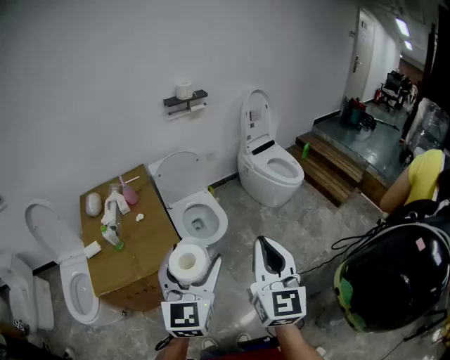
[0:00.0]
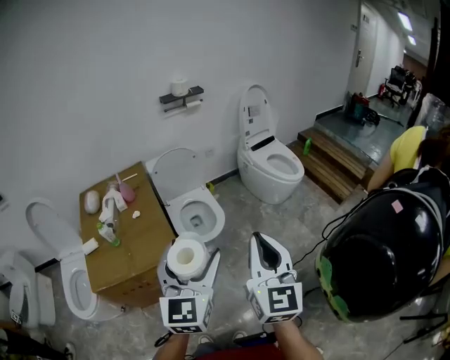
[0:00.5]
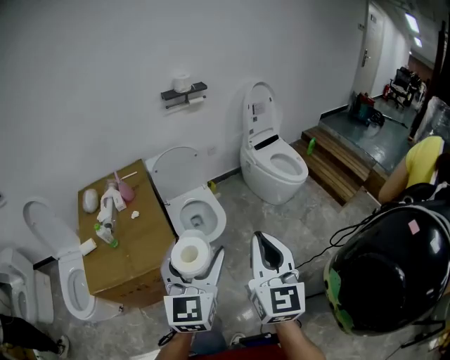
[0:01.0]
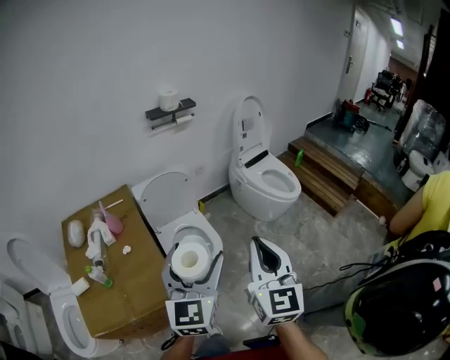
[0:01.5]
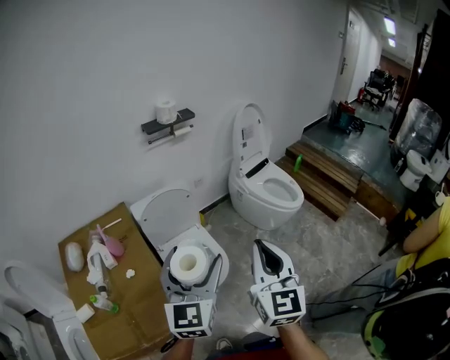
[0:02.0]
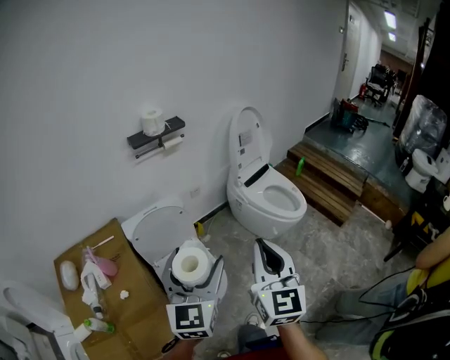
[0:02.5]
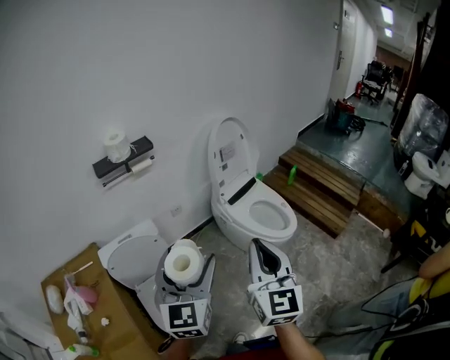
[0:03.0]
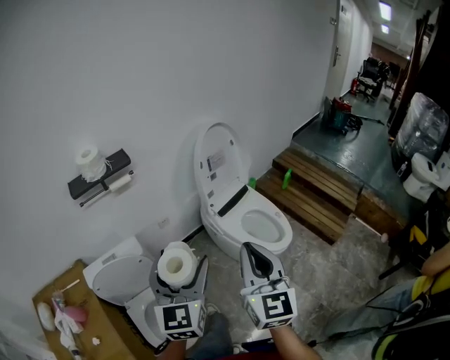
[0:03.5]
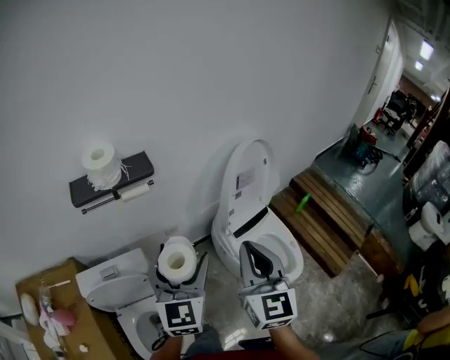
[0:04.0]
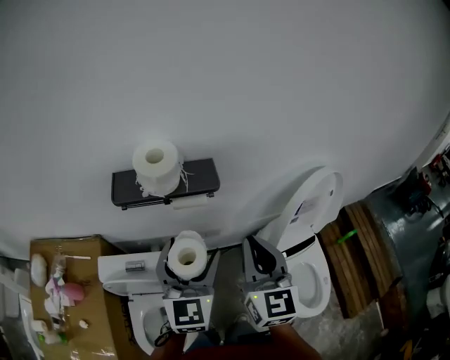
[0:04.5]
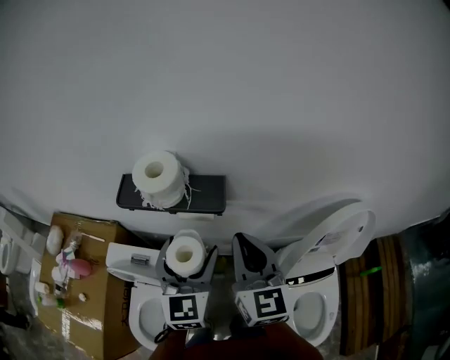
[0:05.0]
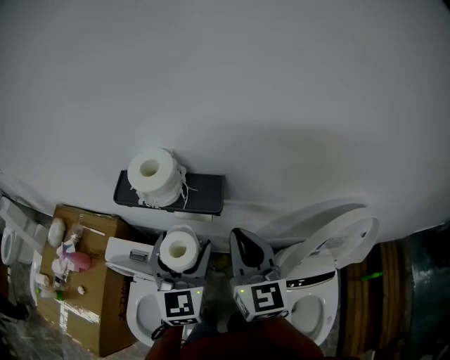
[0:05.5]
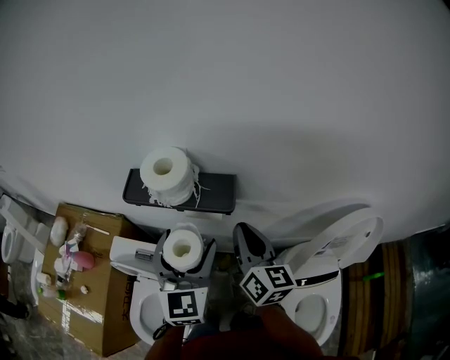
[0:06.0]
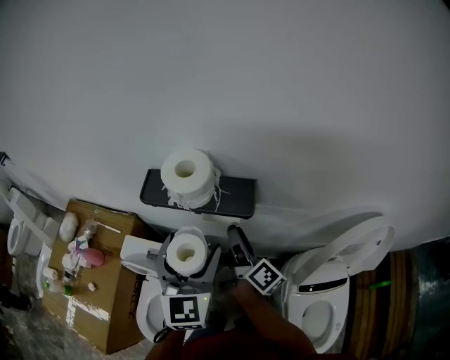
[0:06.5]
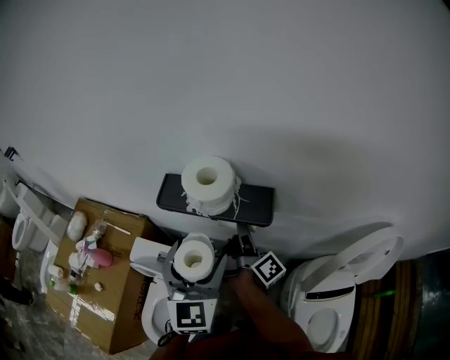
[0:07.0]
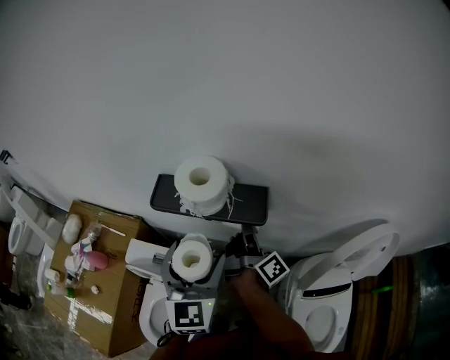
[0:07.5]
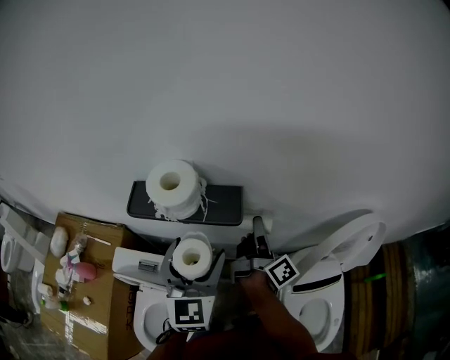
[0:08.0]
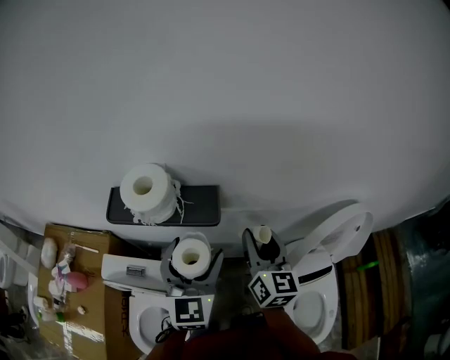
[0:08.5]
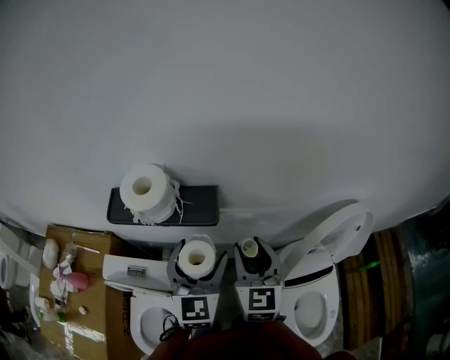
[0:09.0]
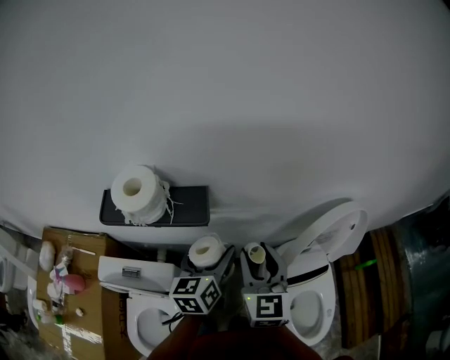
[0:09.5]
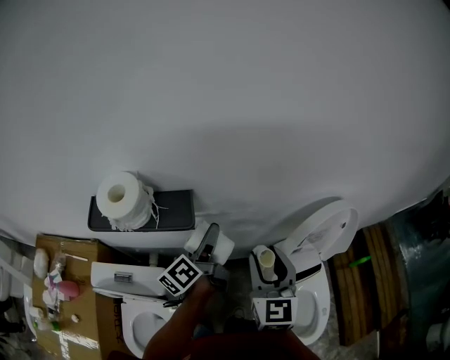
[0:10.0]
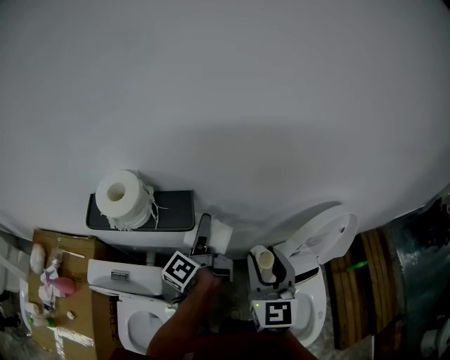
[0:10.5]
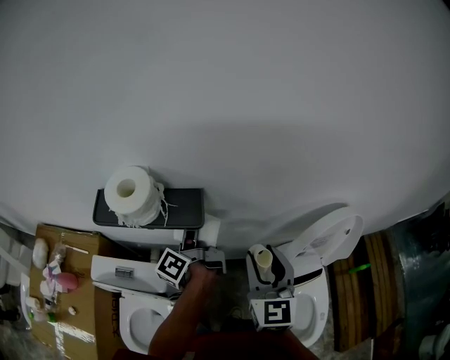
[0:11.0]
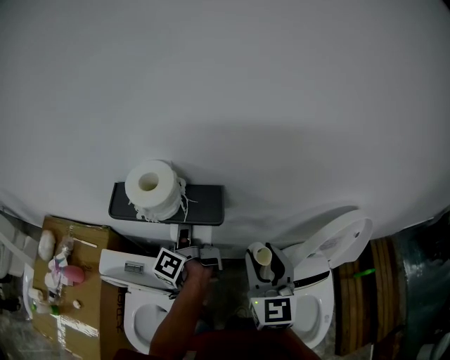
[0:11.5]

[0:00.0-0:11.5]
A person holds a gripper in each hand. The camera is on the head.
0:00.0 to 0:02.0: The grippers both shift forward by roughly 30 cm.
0:02.0 to 0:04.0: The pair of grippers is taken forward, some 60 cm.
0:04.0 to 0:06.0: The left gripper ends up roughly 20 cm from where it was, and changes its angle by roughly 40 degrees, while the right gripper ends up some 35 cm from where it was, and changes its angle by about 50 degrees.
0:06.0 to 0:07.5: The left gripper is displaced to the left by roughly 5 cm. The right gripper shifts about 10 cm forward and downward, twists about 50 degrees clockwise, seen from behind, and opens its fingers.
0:07.5 to 0:09.5: The left gripper heads to the right and downward, covering roughly 20 cm, and rotates approximately 40 degrees. The right gripper shifts roughly 15 cm to the right and backward, and twists approximately 90 degrees counterclockwise, seen from behind.
0:09.5 to 0:11.5: The left gripper goes about 15 cm to the left and forward, and twists some 60 degrees counterclockwise, seen from behind.

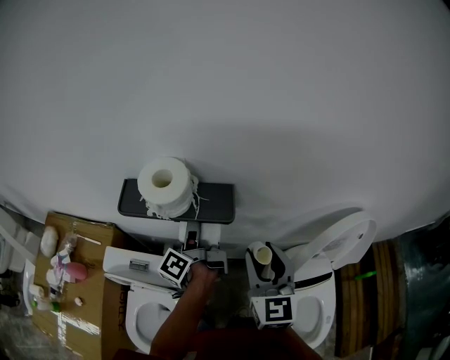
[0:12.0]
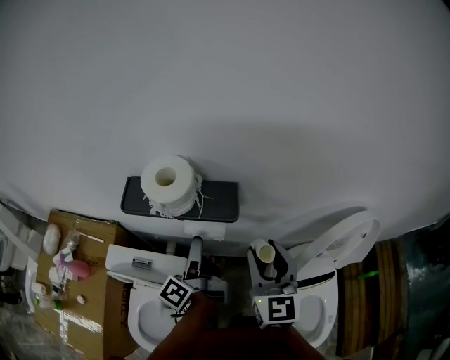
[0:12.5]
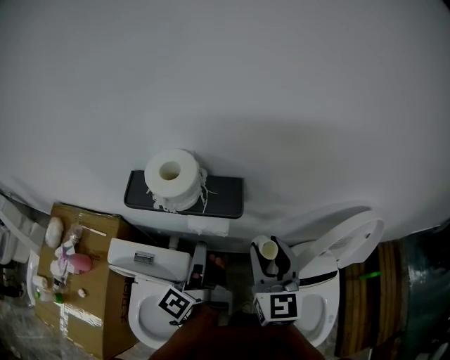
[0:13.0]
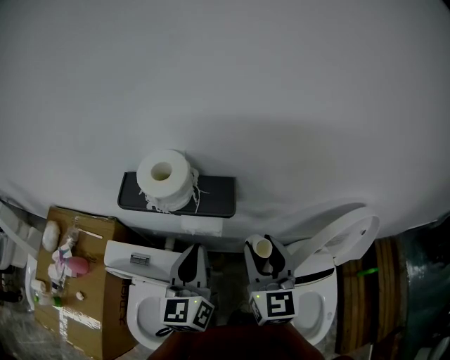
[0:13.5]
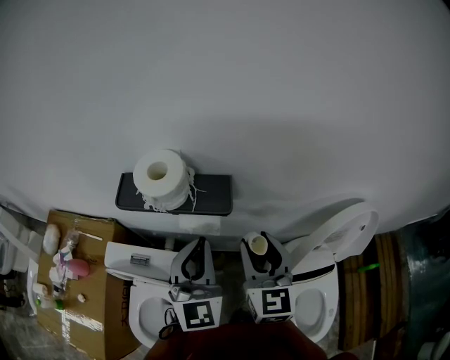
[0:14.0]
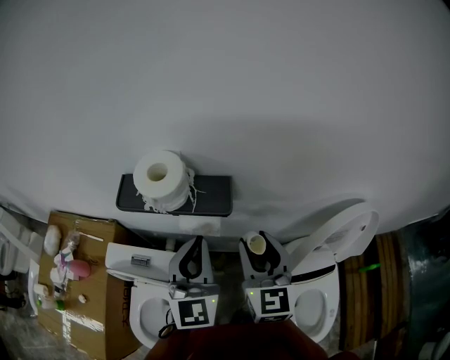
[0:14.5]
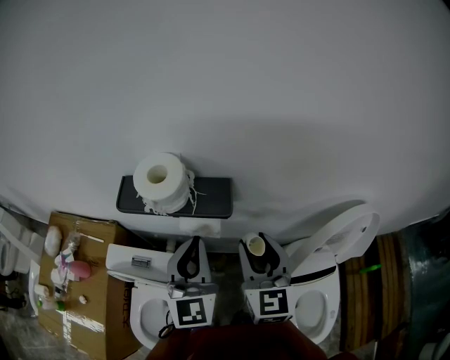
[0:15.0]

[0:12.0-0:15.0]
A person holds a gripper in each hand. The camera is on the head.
0:12.0 to 0:13.5: The left gripper heads backward, covering roughly 10 cm, rotates around the line of its fingers by approximately 70 degrees, clockwise from behind, and closes up.
0:13.5 to 0:15.0: The left gripper turns by some 20 degrees.

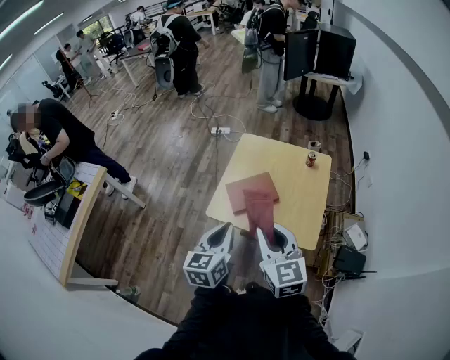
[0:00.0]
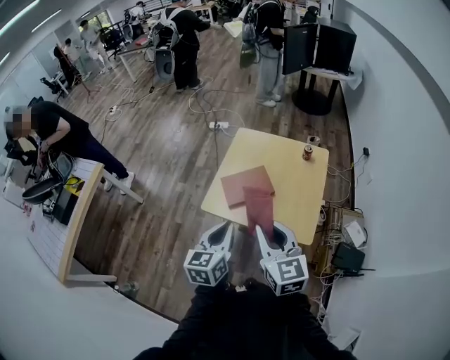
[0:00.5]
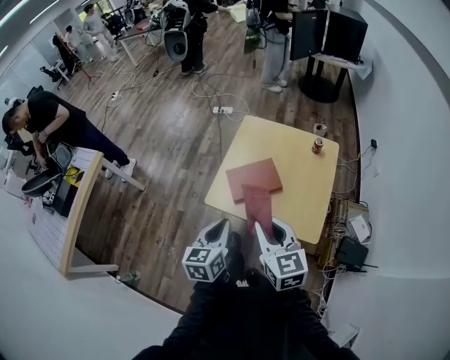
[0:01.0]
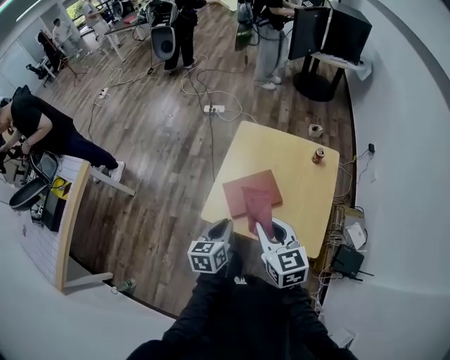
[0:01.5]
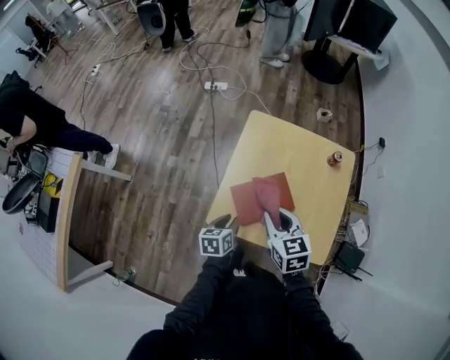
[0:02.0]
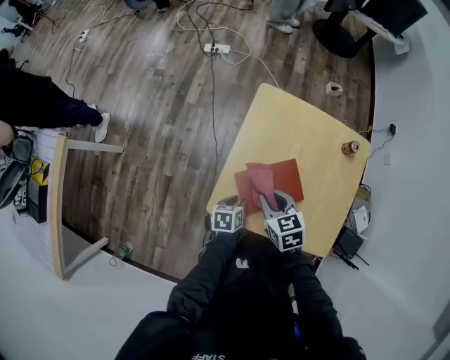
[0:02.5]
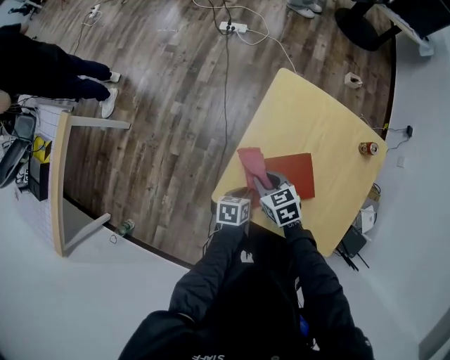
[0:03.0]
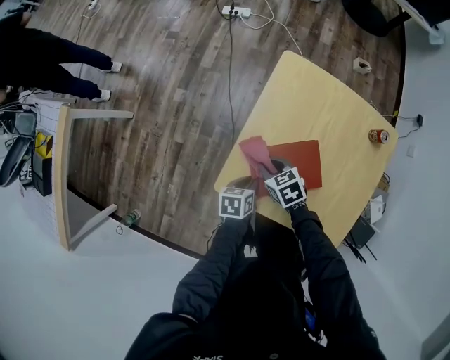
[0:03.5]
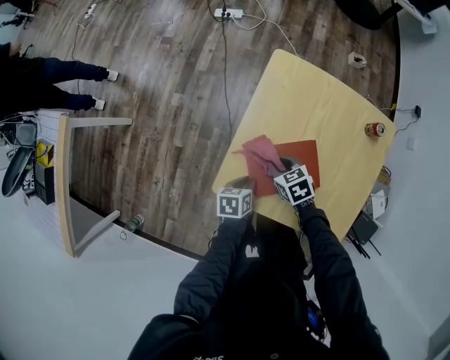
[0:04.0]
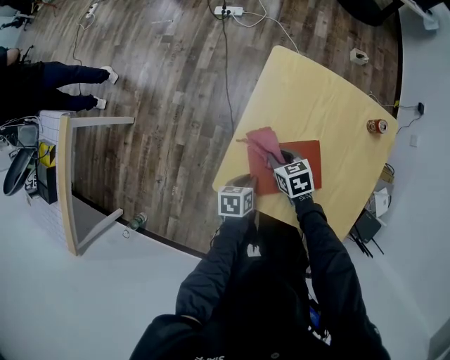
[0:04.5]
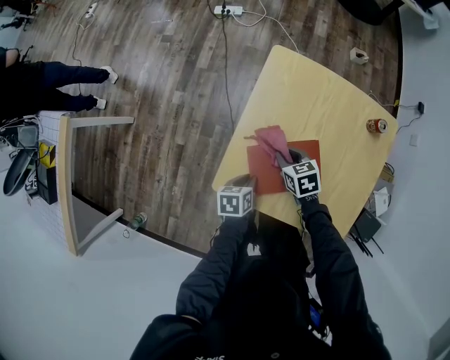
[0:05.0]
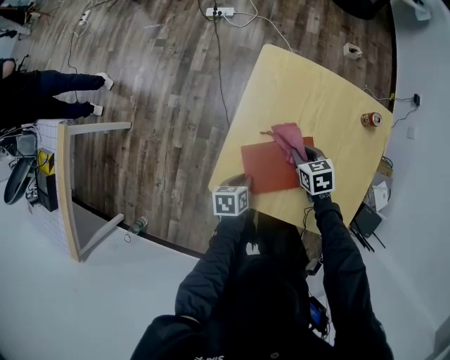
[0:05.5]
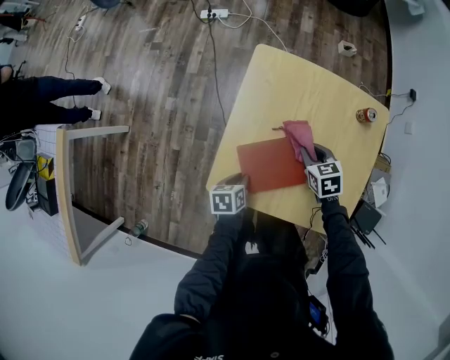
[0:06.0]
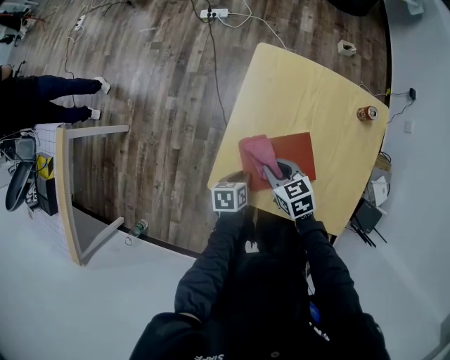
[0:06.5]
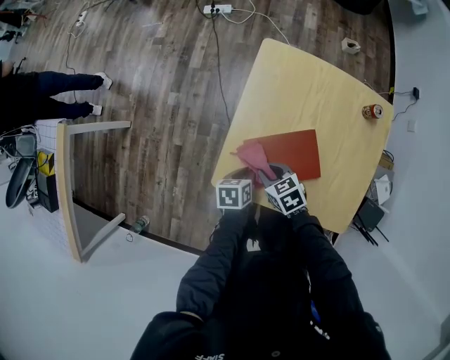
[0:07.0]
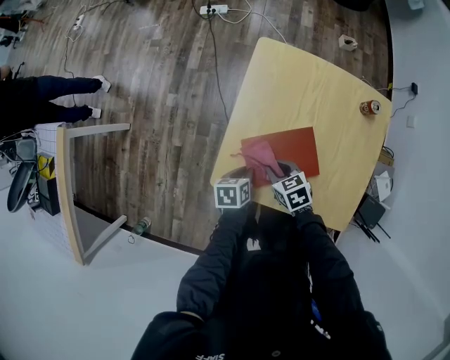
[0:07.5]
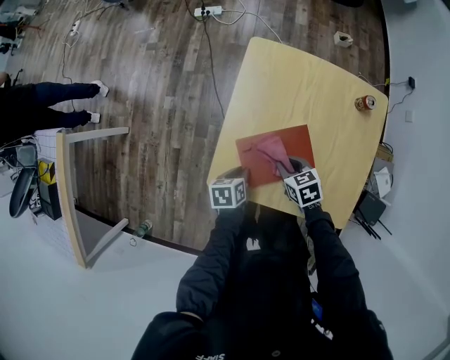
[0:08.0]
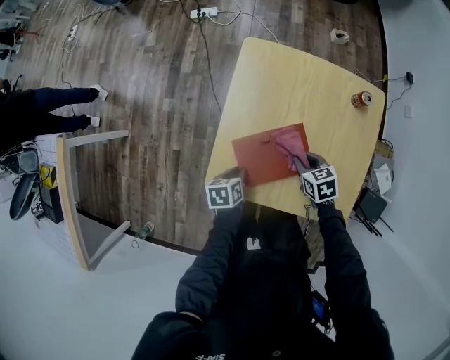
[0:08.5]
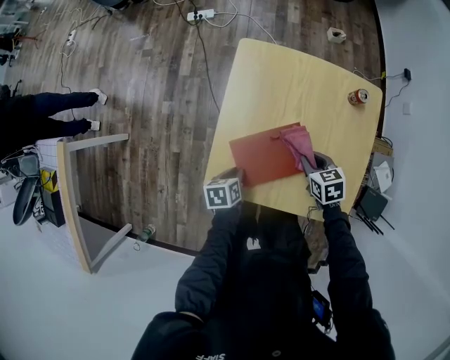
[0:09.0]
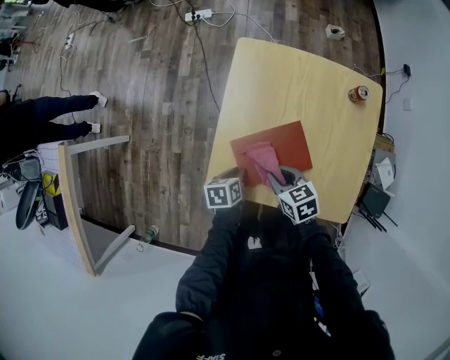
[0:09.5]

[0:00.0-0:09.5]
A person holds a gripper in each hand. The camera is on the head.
0:00.0 to 0:02.0: The right gripper moves forward and downward, roughly 30 cm, and turns by some 20 degrees. Meanwhile the left gripper travels downward and forward by roughly 35 cm, and swivels roughly 30 degrees.
0:02.0 to 0:04.0: The left gripper heads downward, covering approximately 15 cm; the right gripper moves downward, roughly 25 cm, and changes its angle by some 30 degrees.
0:04.0 to 0:05.5: The right gripper travels to the right by roughly 10 cm.
0:05.5 to 0:07.5: The right gripper travels backward and to the left by approximately 15 cm.
0:07.5 to 0:09.5: The right gripper goes to the right and returns, about 15 cm each way.

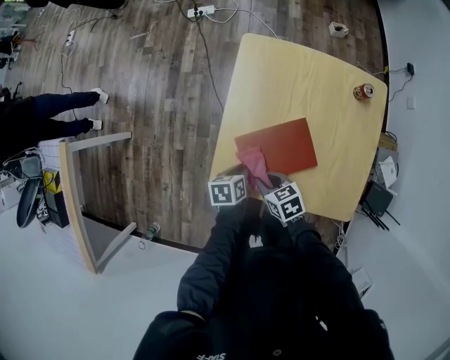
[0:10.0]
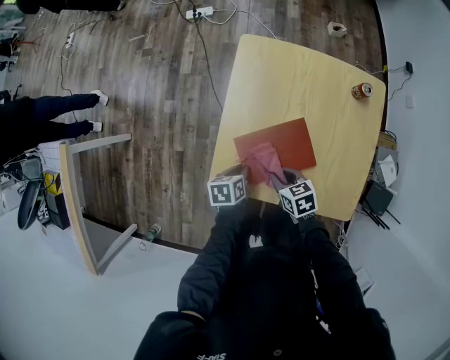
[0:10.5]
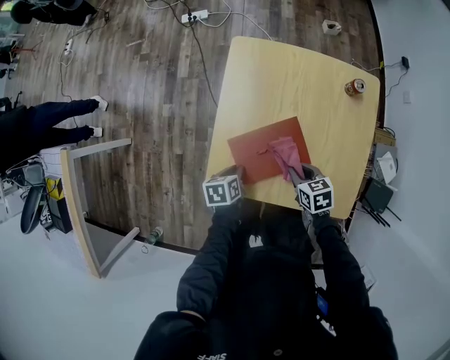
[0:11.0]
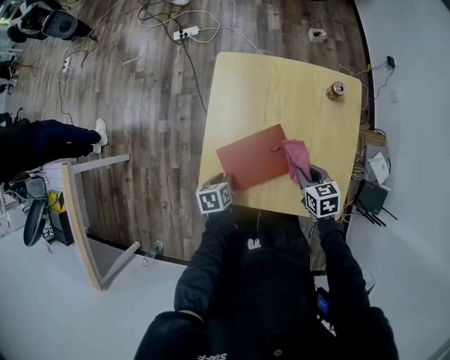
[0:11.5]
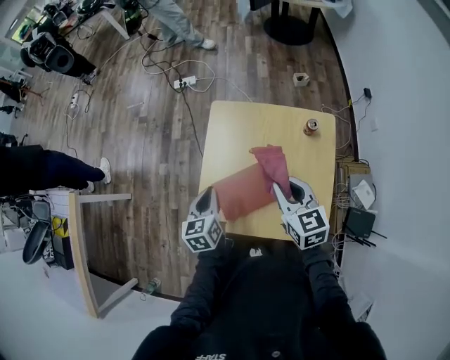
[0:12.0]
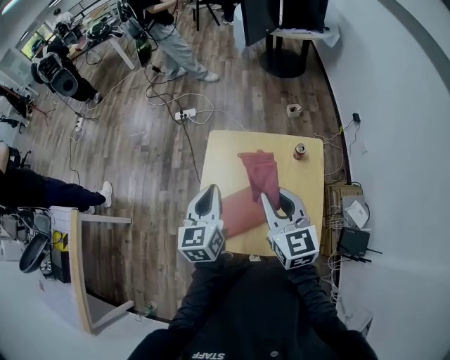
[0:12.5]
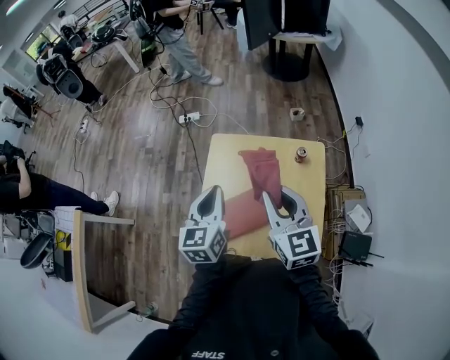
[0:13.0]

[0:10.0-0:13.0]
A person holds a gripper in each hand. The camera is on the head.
0:10.0 to 0:11.5: The right gripper moves to the right, approximately 20 cm, and turns by approximately 20 degrees.
0:11.5 to 0:13.0: Both grippers travel together upward, roughly 40 cm. The left gripper tilts its fingers about 50 degrees upward. The right gripper angles its fingers upward, by about 40 degrees.
